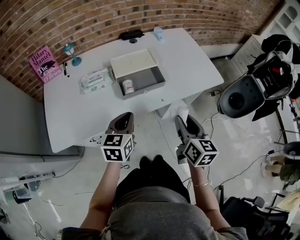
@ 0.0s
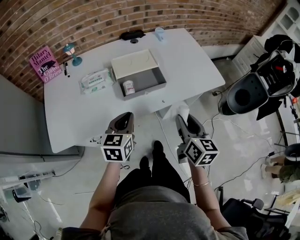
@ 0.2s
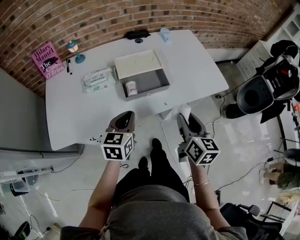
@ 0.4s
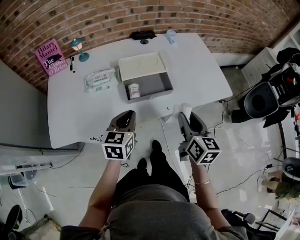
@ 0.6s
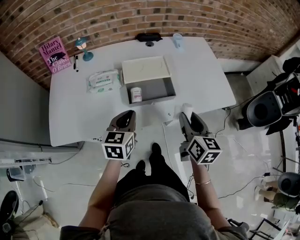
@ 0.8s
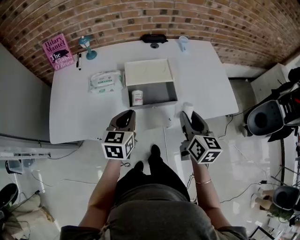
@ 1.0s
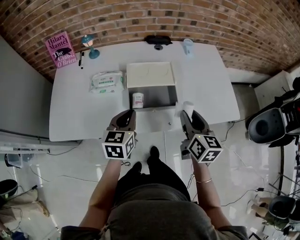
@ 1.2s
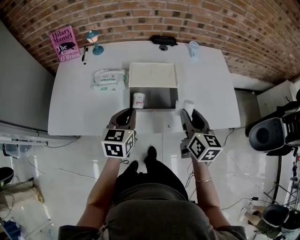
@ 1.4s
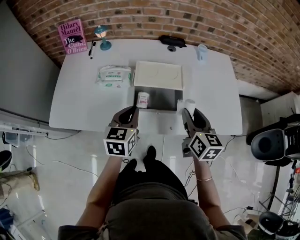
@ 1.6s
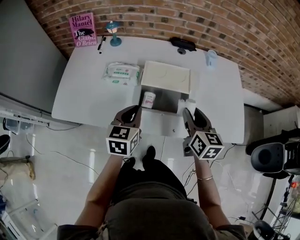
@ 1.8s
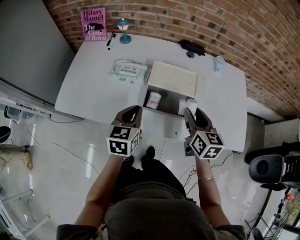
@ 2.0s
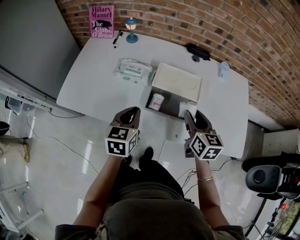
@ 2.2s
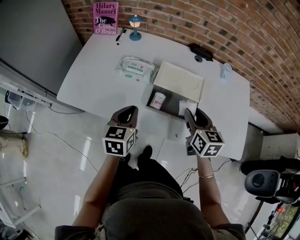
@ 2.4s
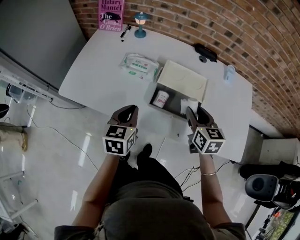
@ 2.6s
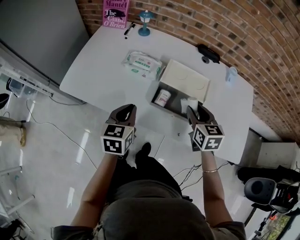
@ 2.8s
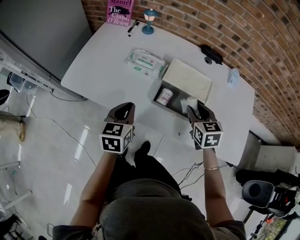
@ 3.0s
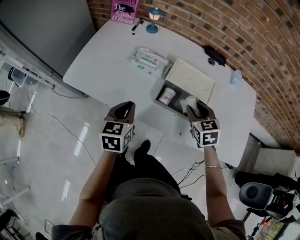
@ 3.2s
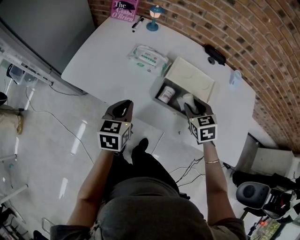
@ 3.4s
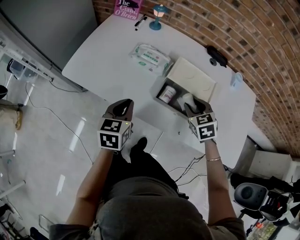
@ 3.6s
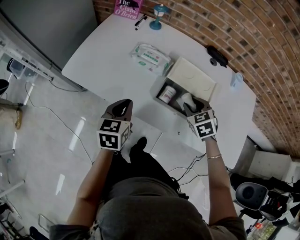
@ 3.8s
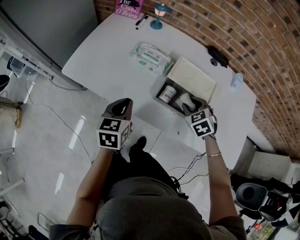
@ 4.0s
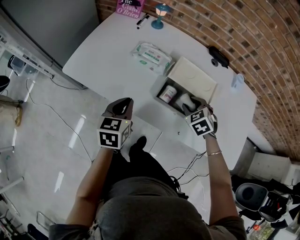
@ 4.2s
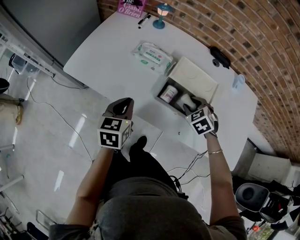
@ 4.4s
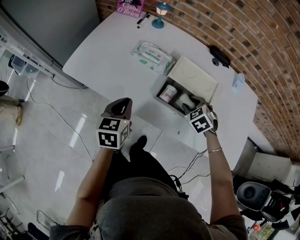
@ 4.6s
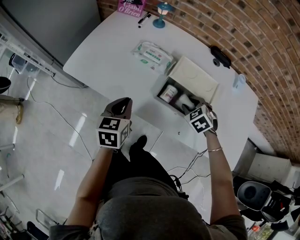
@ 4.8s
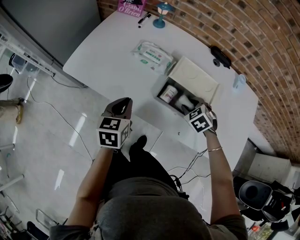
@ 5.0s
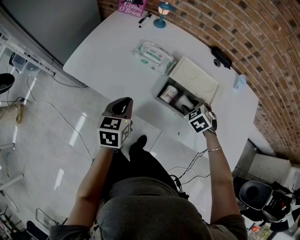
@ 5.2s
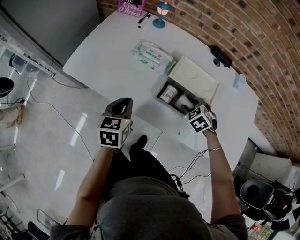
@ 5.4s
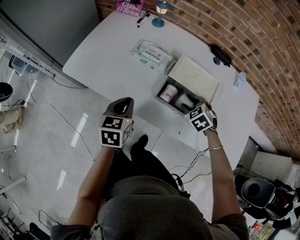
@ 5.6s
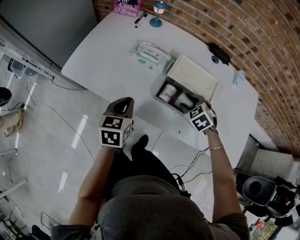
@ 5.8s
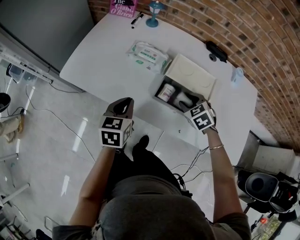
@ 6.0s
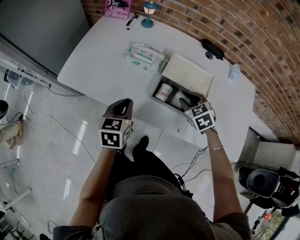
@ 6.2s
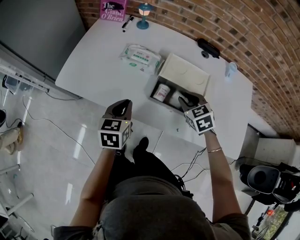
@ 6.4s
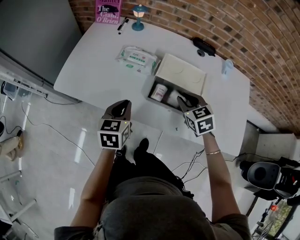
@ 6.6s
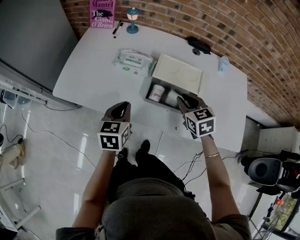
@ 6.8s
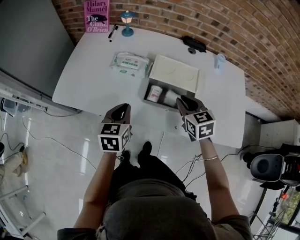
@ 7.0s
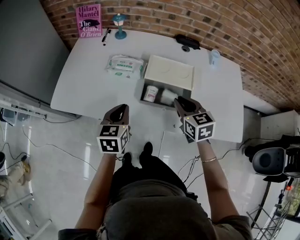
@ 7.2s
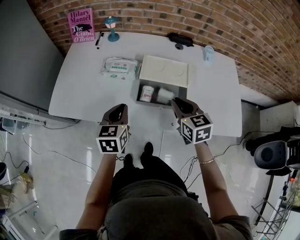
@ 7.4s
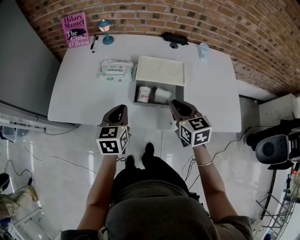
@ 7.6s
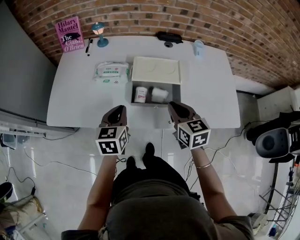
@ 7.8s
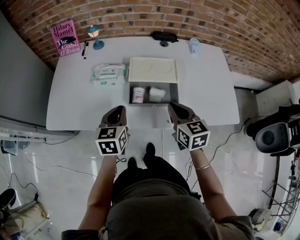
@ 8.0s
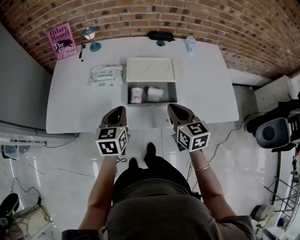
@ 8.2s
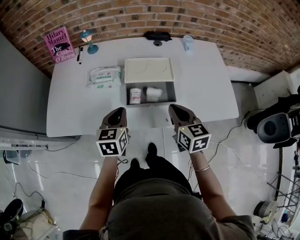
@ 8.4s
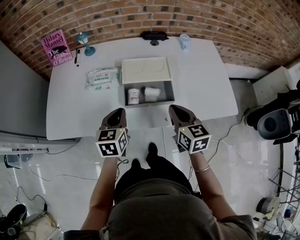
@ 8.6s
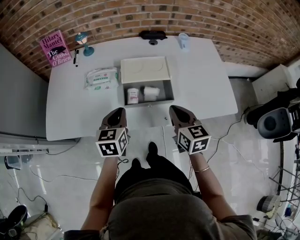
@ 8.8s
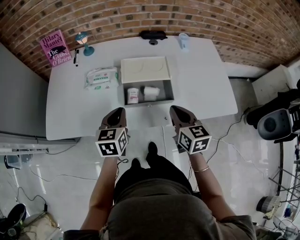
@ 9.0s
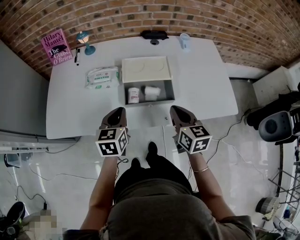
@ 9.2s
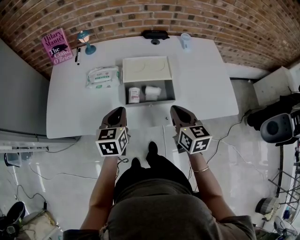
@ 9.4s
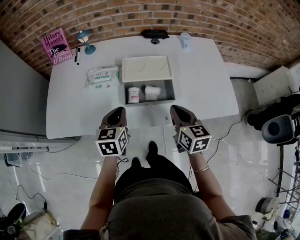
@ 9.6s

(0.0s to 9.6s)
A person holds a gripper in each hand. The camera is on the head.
0.0s - 1.6s: The left gripper moves forward, some 10 cm, and changes its angle by about 20 degrees. The right gripper travels forward by roughly 20 cm, and rotates about 20 degrees.
1.6s - 3.2s: The left gripper moves to the left, about 10 cm, and changes its angle by some 20 degrees. Meanwhile the right gripper moves forward, downward and to the left, approximately 15 cm, and turns by some 50 degrees.
3.2s - 4.8s: The right gripper heads downward, covering roughly 5 cm, and rotates some 30 degrees.
4.8s - 6.4s: The right gripper rotates about 20 degrees.
6.4s - 8.0s: The left gripper goes approximately 5 cm to the right; the right gripper heads backward and upward, covering approximately 10 cm, changes its angle by roughly 40 degrees, and closes.
8.0s - 9.6s: There are only small adjustments of the grippers.

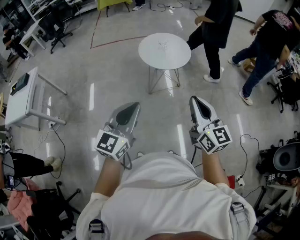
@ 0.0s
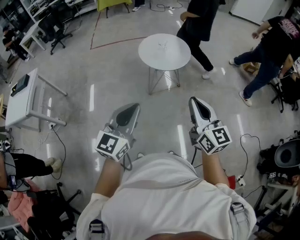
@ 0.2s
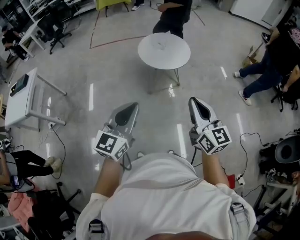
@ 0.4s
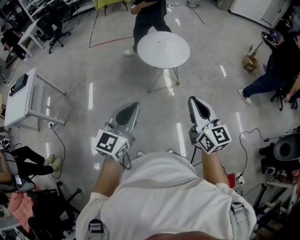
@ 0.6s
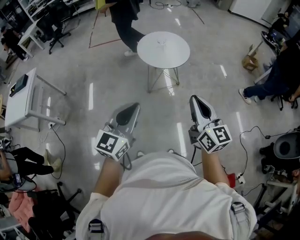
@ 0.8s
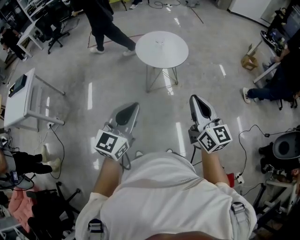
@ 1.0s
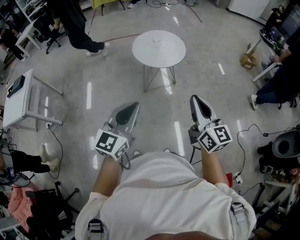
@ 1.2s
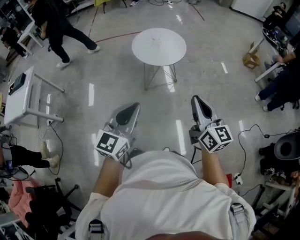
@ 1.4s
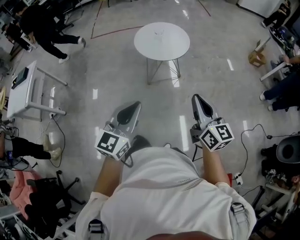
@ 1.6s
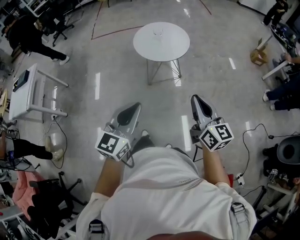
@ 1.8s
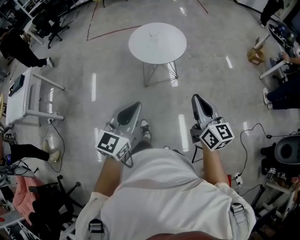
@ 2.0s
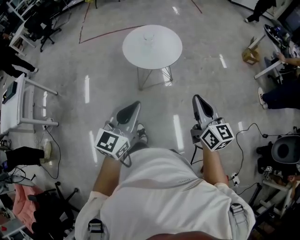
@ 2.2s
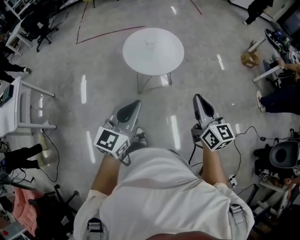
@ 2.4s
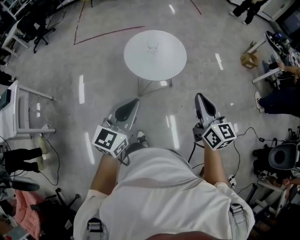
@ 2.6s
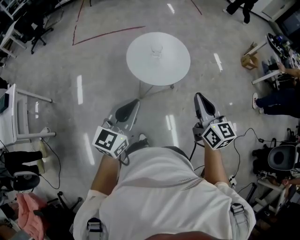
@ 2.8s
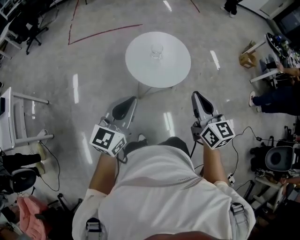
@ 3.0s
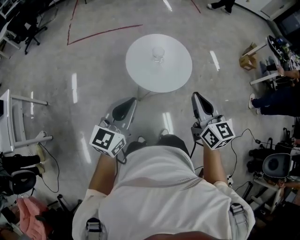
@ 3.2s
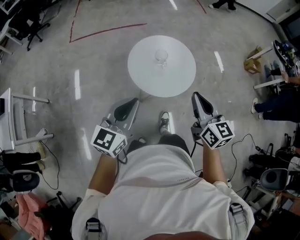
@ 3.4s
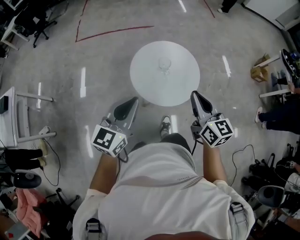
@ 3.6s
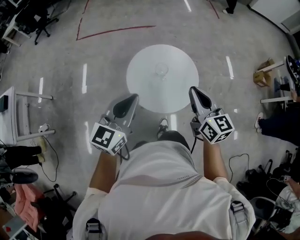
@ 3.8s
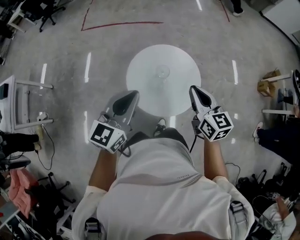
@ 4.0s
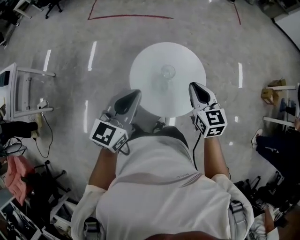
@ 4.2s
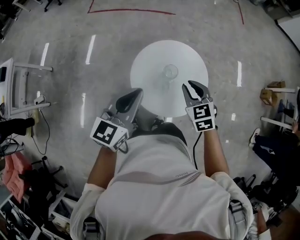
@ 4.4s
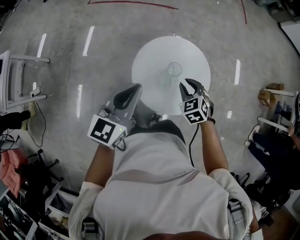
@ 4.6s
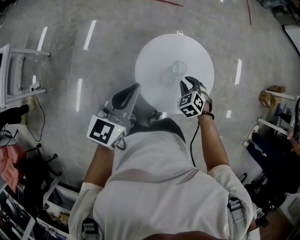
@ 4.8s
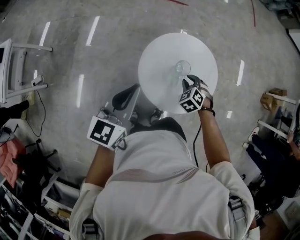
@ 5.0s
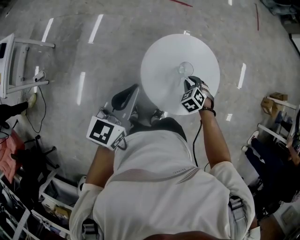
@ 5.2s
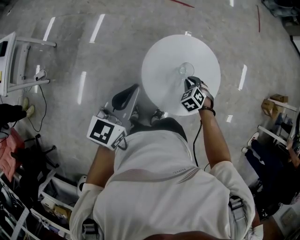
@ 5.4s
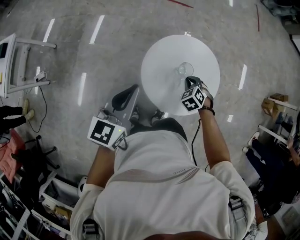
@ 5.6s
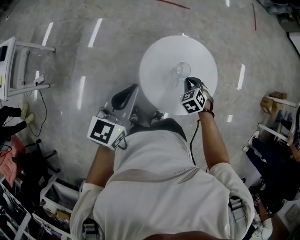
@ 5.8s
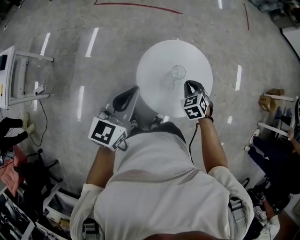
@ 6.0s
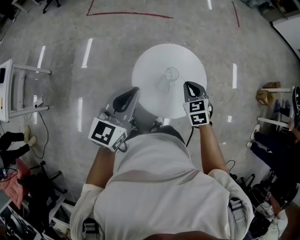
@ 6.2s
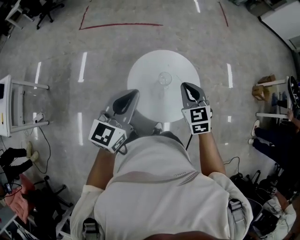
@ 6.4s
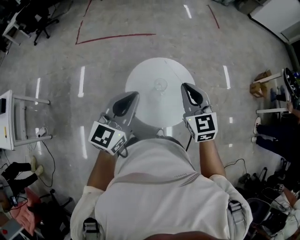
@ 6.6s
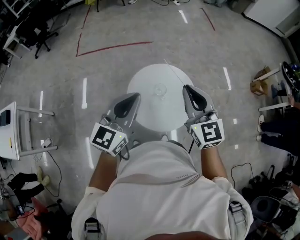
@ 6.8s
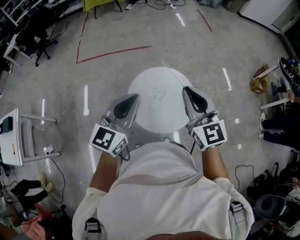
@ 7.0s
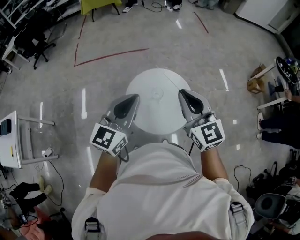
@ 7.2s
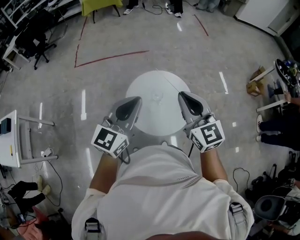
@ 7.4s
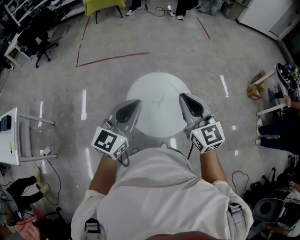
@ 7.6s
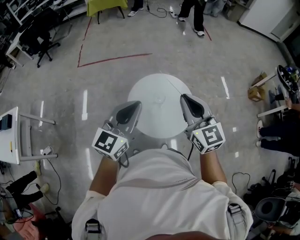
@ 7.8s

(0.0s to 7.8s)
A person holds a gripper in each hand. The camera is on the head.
0.0s - 1.6s: The left gripper goes approximately 10 cm to the right. Meanwhile the right gripper travels to the right and downward by about 10 cm.
1.6s - 3.2s: Both grippers are carried forward, approximately 50 cm.
3.2s - 4.6s: The left gripper goes about 30 cm forward, and turns by roughly 20 degrees. The right gripper moves forward and downward, some 40 cm, points its fingers some 40 degrees further downward, and opens.
4.6s - 6.2s: The right gripper reaches some 10 cm downward, then returns.
6.2s - 7.8s: The right gripper shifts about 30 cm upward and backward, and tilts its fingers some 40 degrees upward. The left gripper heads upward and to the right, covering approximately 10 cm.

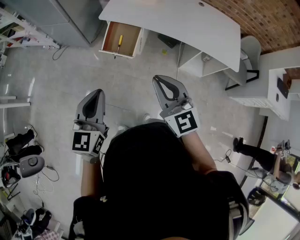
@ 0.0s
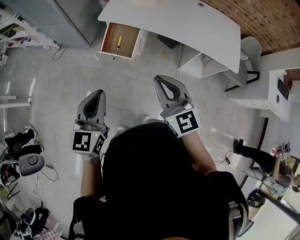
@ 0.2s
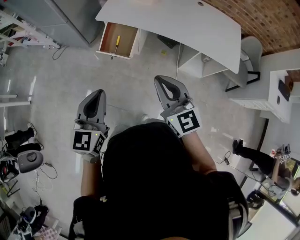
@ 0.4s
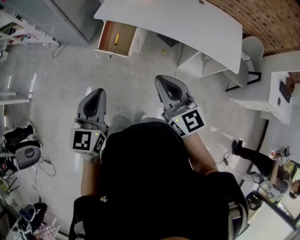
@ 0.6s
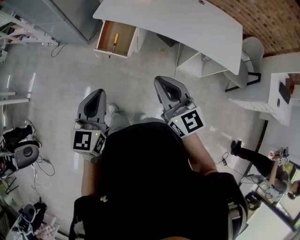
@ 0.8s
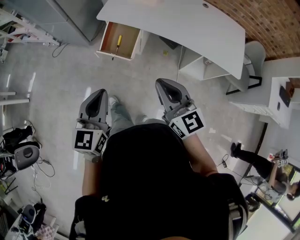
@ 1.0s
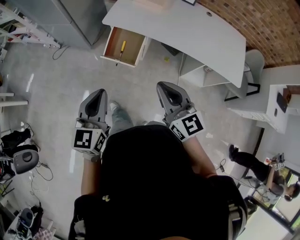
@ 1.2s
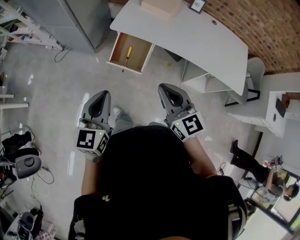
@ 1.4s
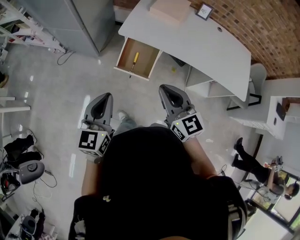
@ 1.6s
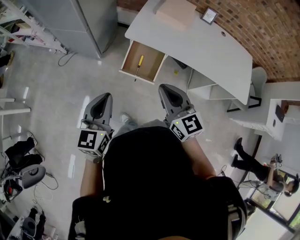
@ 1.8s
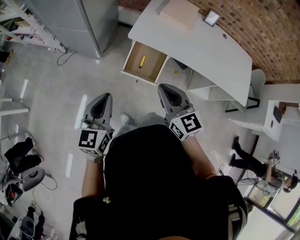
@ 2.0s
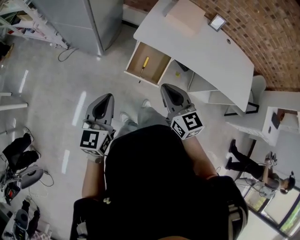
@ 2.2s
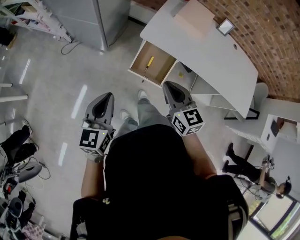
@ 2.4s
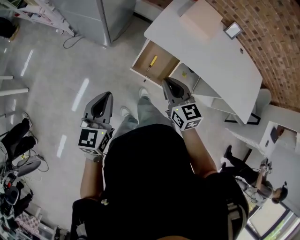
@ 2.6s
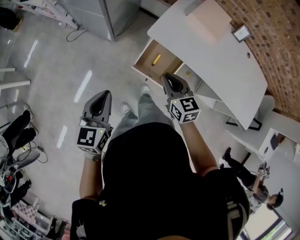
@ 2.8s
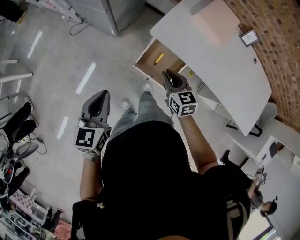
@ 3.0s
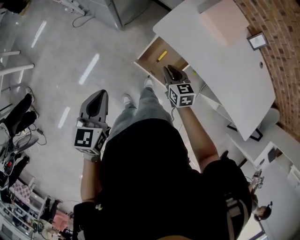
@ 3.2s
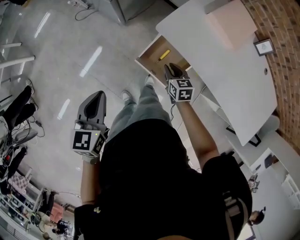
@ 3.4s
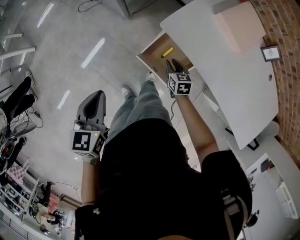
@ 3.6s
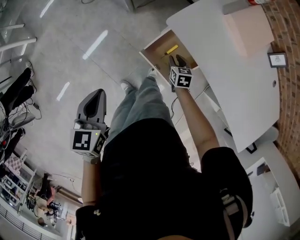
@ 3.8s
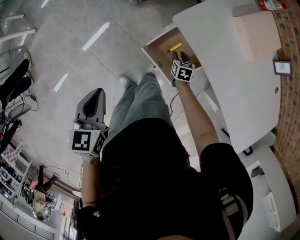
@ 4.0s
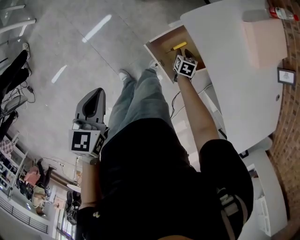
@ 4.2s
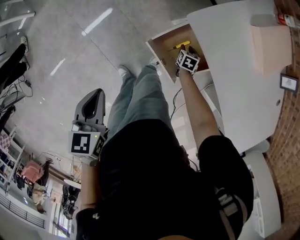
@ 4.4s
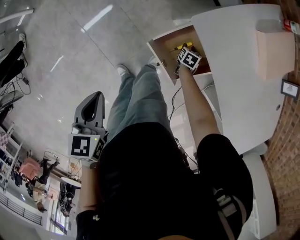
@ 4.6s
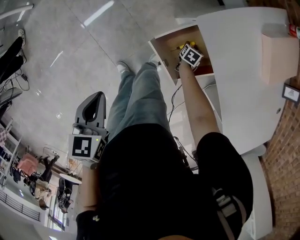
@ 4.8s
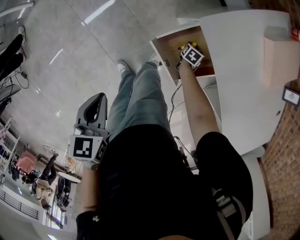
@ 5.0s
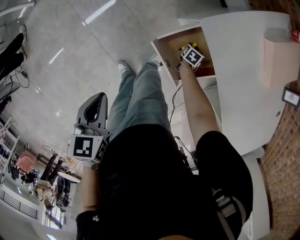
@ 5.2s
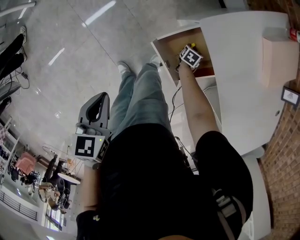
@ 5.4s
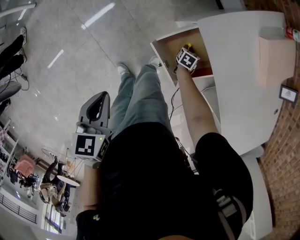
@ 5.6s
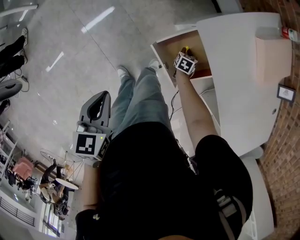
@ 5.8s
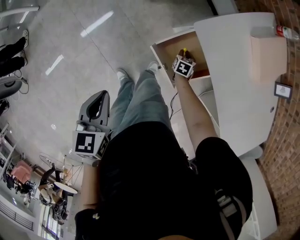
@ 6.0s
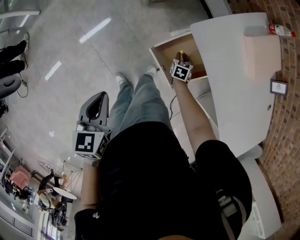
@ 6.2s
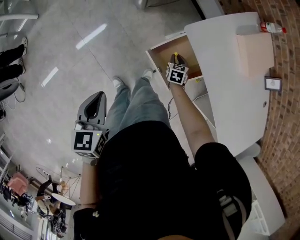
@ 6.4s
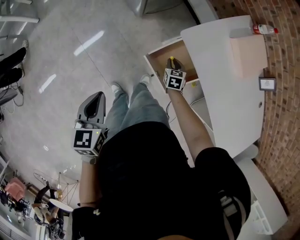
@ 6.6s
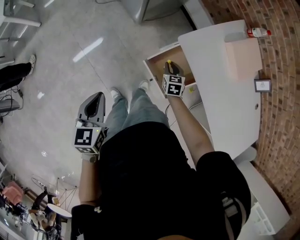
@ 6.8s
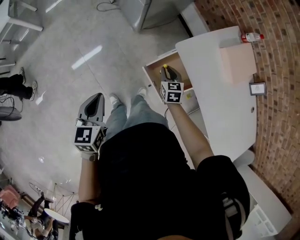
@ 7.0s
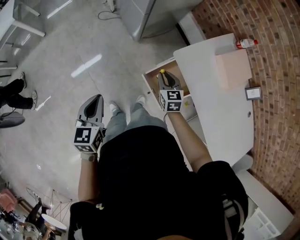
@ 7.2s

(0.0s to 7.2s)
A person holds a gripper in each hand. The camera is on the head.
0.0s - 1.4s: Both grippers move forward, approximately 15 cm.
1.4s - 2.8s: The right gripper shifts about 35 cm forward, to the left and downward, and swivels approximately 20 degrees, while the left gripper goes roughly 25 cm forward and to the left.
2.8s - 4.4s: The right gripper goes some 50 cm downward, tips its fingers downward by approximately 40 degrees, and opens up. The left gripper travels downward by about 15 cm, and swivels some 40 degrees.
5.8s - 7.2s: The left gripper moves upward and to the left, roughly 10 cm. Meanwhile the right gripper goes about 40 cm upward and to the left, and rotates some 40 degrees.
